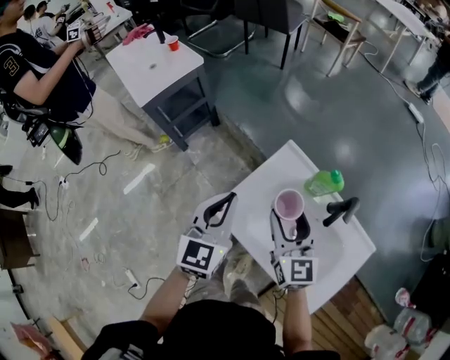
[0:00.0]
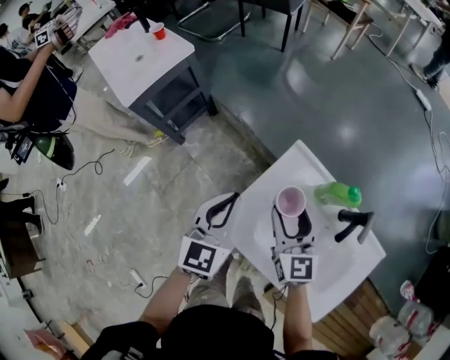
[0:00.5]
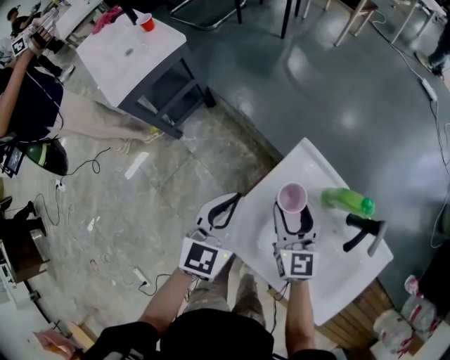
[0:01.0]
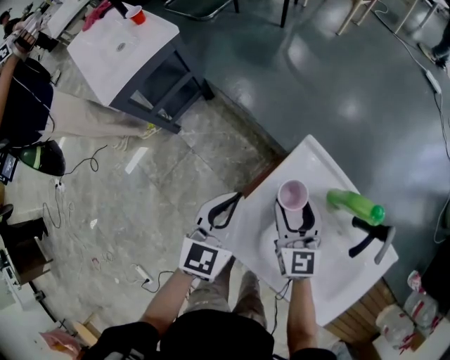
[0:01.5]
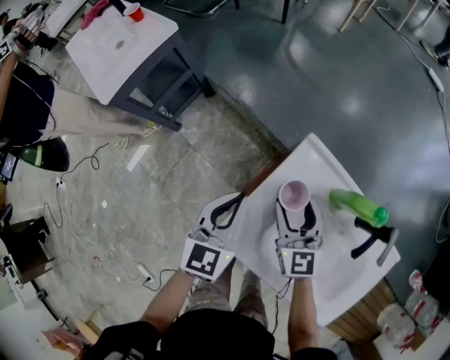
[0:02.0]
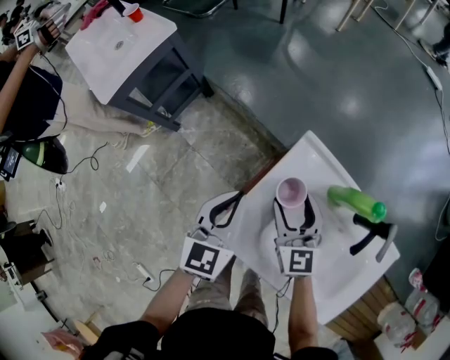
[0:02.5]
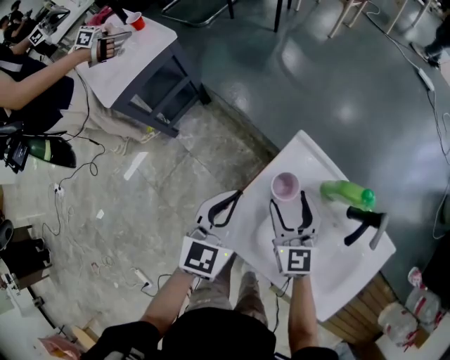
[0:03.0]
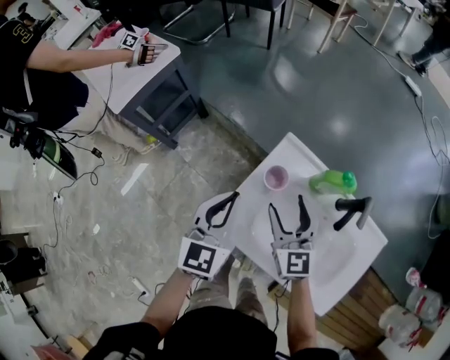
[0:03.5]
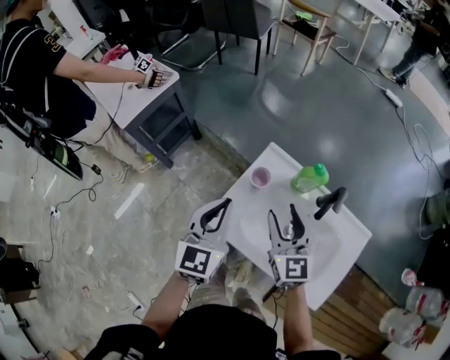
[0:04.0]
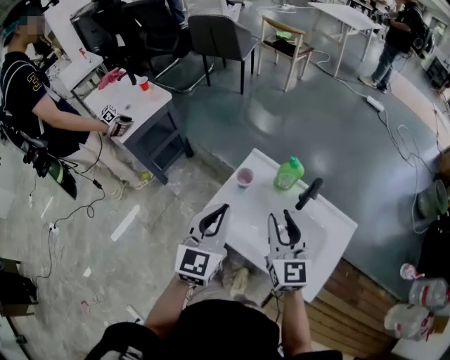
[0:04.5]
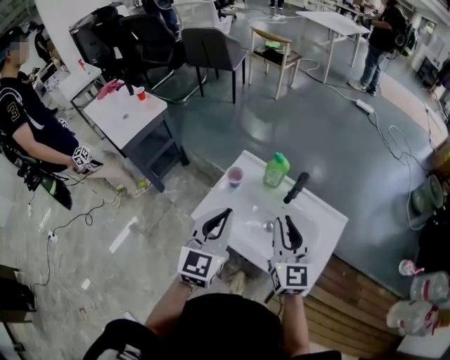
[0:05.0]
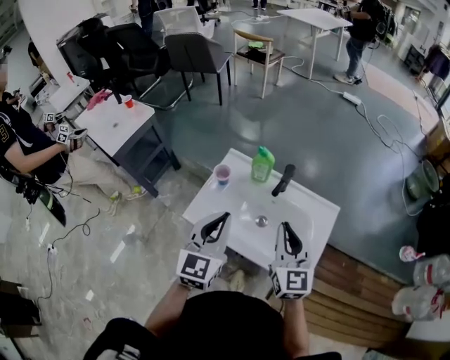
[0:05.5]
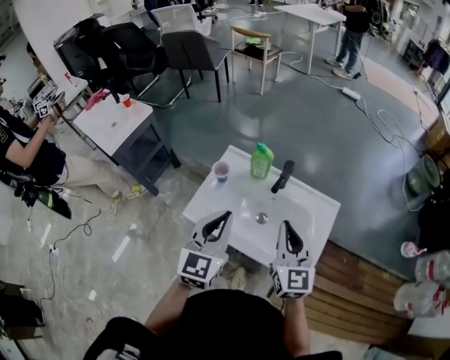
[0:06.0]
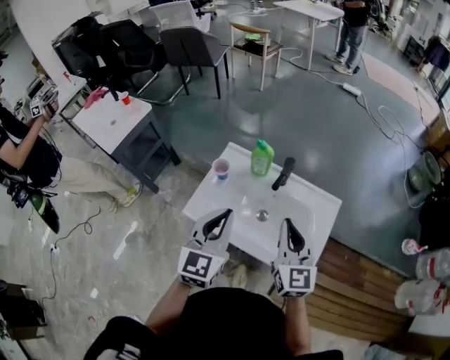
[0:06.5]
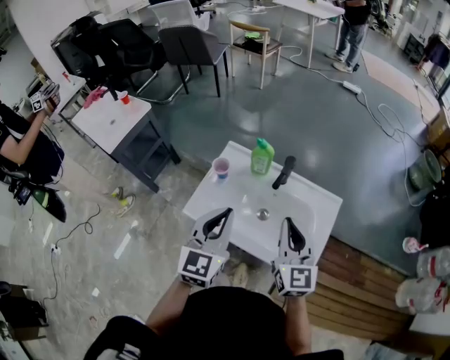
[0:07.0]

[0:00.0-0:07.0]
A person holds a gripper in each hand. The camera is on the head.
0:00.0 to 0:02.0: Both grippers move downward and forward, some 20 cm.
0:02.0 to 0:03.5: The left gripper is displaced upward by roughly 10 cm. Meanwhile the right gripper goes approximately 10 cm upward and backward.
0:03.5 to 0:05.0: The right gripper moves upward, backward and to the right, roughly 25 cm, and closes. Meanwhile the left gripper moves backward, upward and to the right, approximately 25 cm.
0:05.0 to 0:07.0: The grippers both shift to the right by approximately 5 cm.

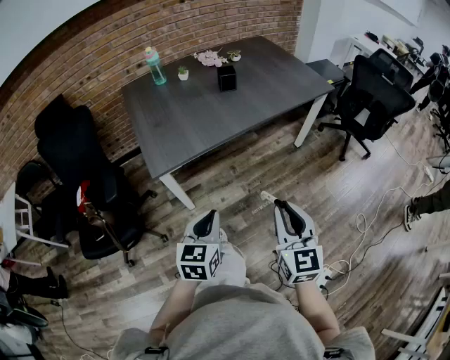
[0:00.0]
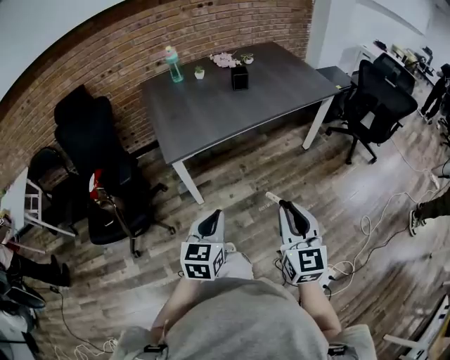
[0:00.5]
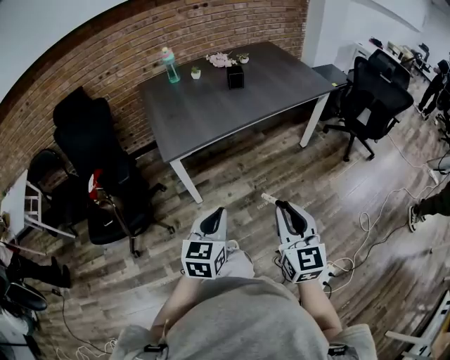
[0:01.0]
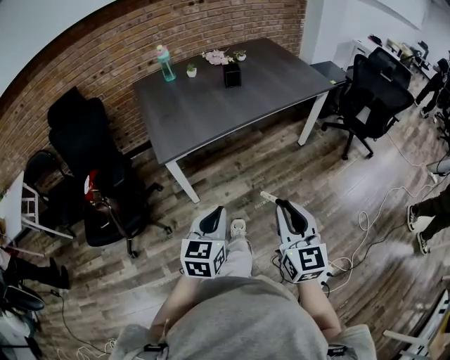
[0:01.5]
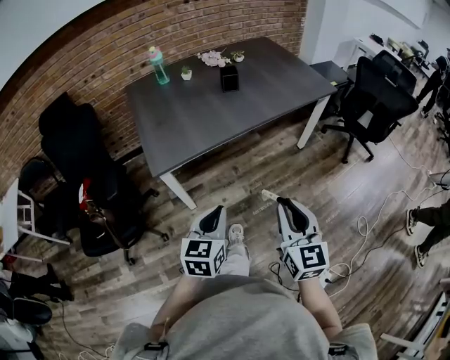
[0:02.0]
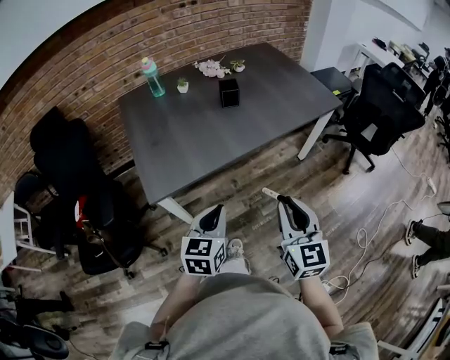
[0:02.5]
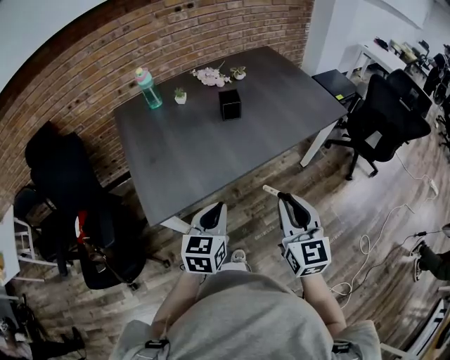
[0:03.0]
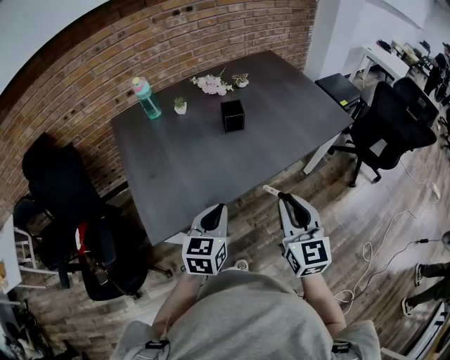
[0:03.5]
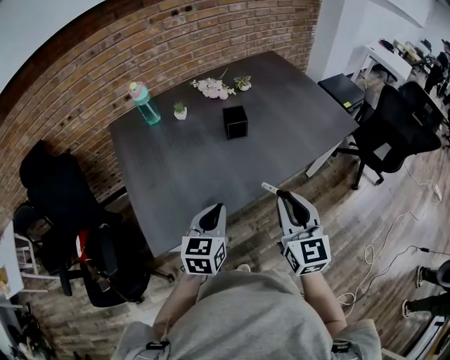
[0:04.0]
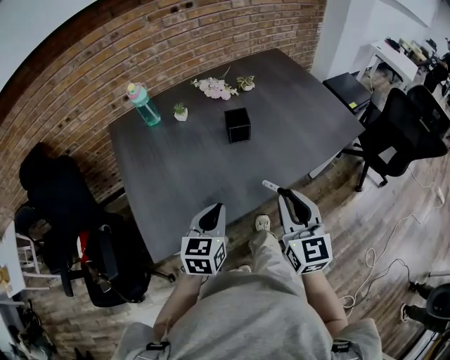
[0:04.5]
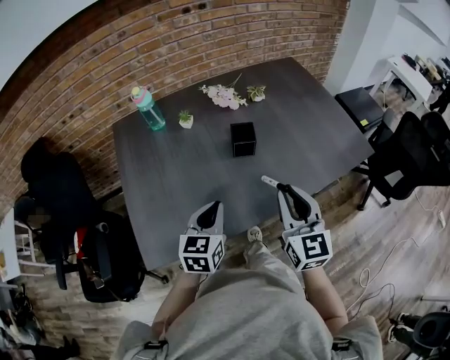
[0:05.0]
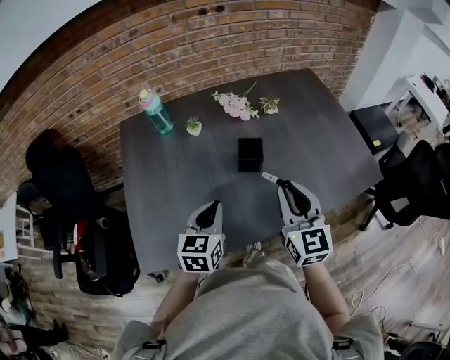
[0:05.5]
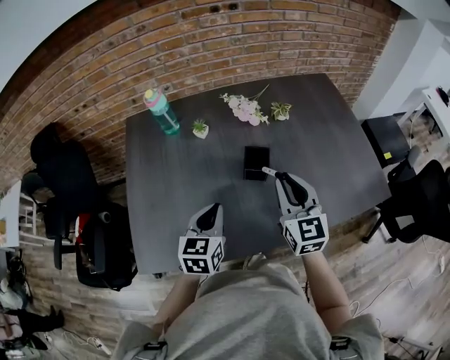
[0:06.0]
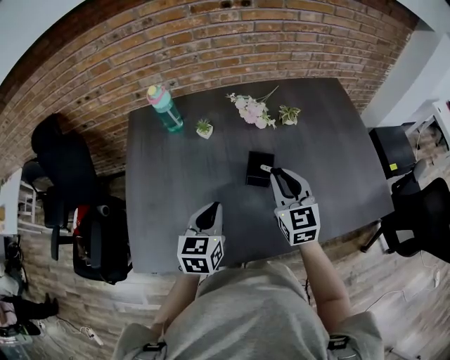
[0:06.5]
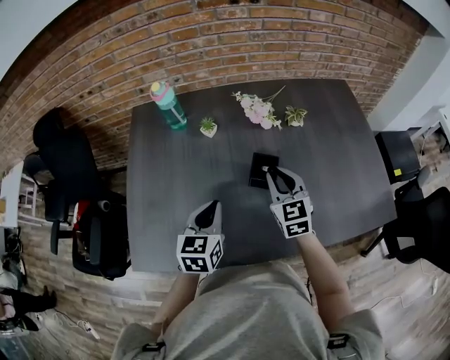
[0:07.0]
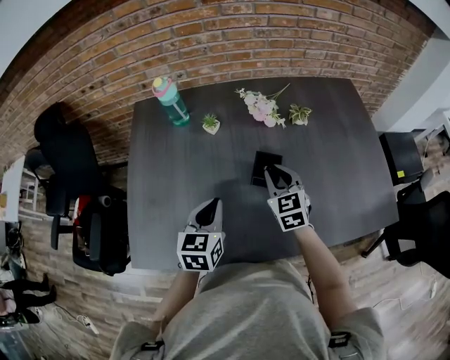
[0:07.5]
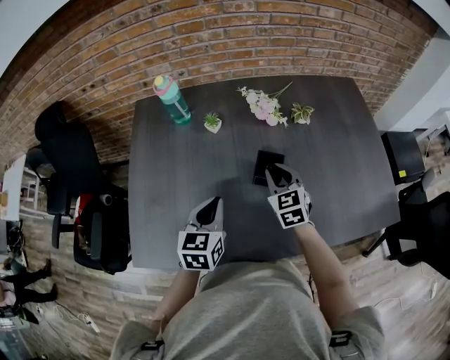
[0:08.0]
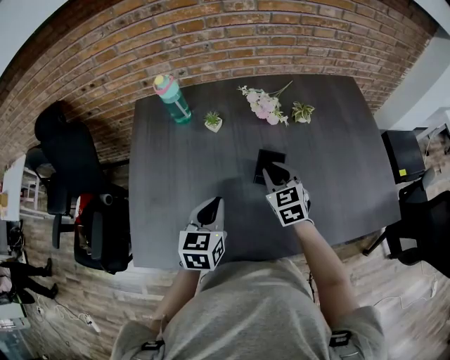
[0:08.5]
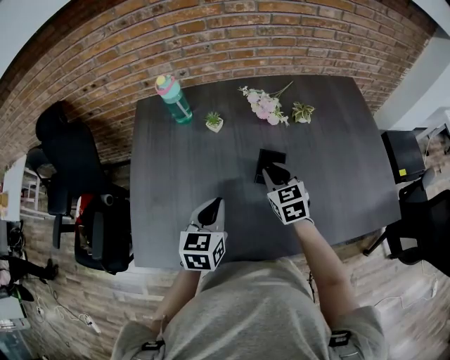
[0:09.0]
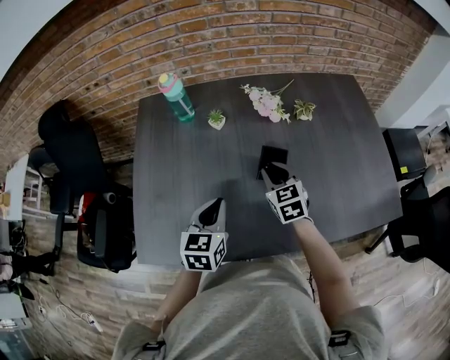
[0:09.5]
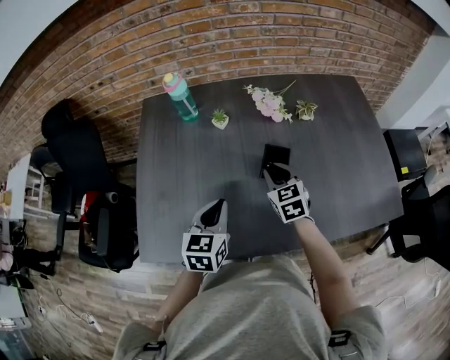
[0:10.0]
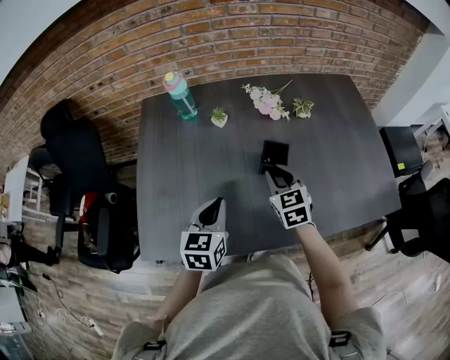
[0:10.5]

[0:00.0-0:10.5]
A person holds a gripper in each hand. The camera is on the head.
0:00.0 to 0:02.0: The left gripper travels backward and back again, approximately 10 cm each way. The right gripper travels backward and back again, some 10 cm each way.
0:02.0 to 0:04.0: Both grippers move forward, about 35 cm.
0:04.0 to 0:06.5: The left gripper moves forward, about 20 cm, and turns by approximately 20 degrees; the right gripper travels forward by some 35 cm, and swivels approximately 30 degrees.
0:06.5 to 0:08.5: The right gripper moves downward and forward, approximately 10 cm.
0:08.5 to 0:10.5: The left gripper ends up about 5 cm from where it was; the right gripper shifts some 5 cm backward.

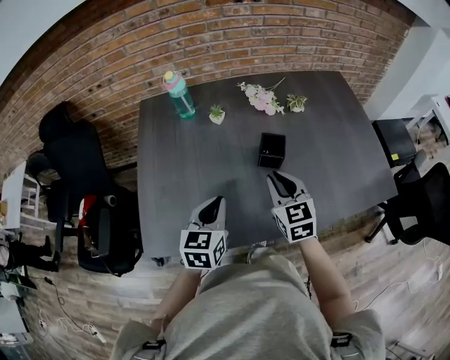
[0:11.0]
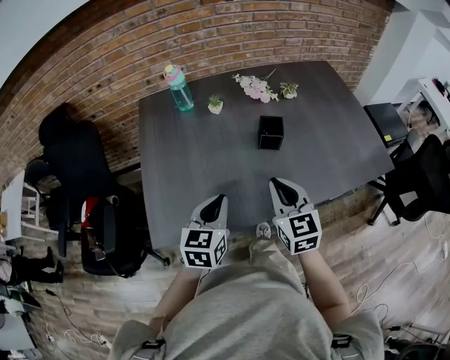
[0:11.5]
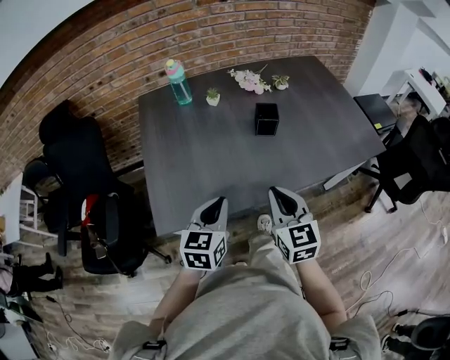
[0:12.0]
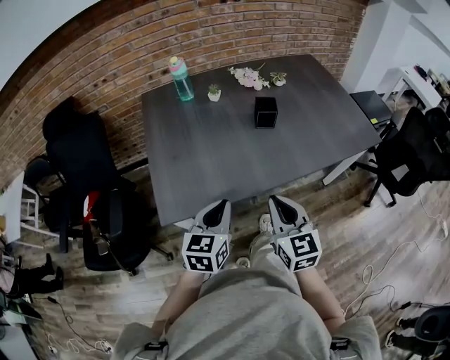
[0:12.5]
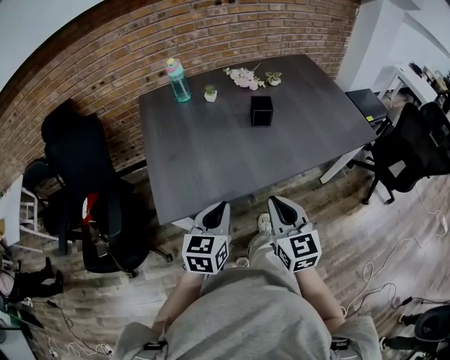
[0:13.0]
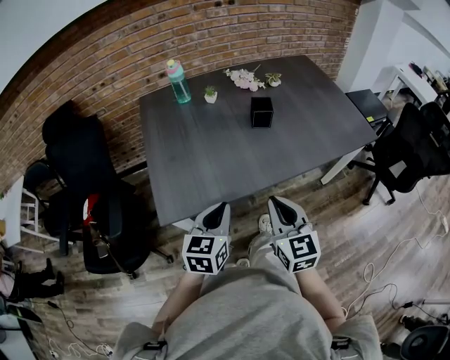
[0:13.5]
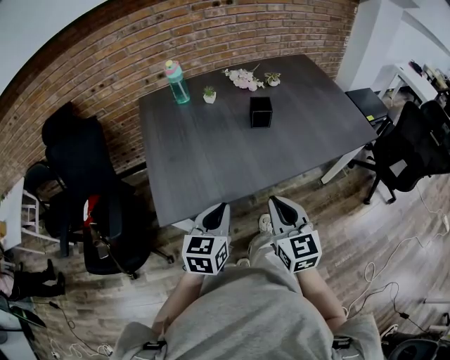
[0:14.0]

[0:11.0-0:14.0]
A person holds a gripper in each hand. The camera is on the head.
0:11.0 to 0:12.5: The two grippers go roughly 25 cm backward.
0:12.5 to 0:14.0: The grippers stay close to where they were, moving slightly.

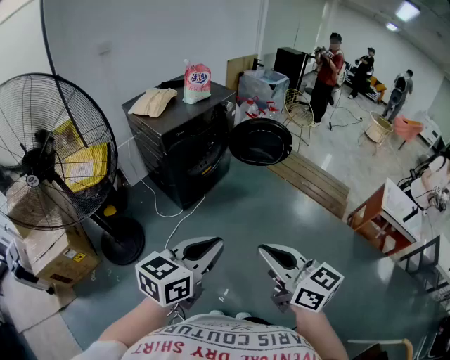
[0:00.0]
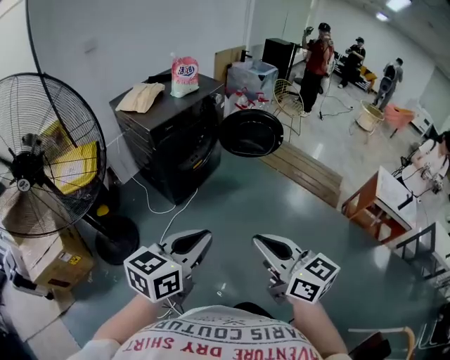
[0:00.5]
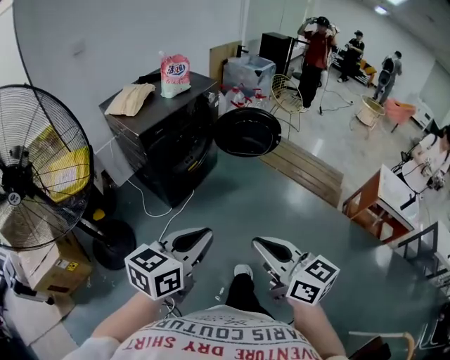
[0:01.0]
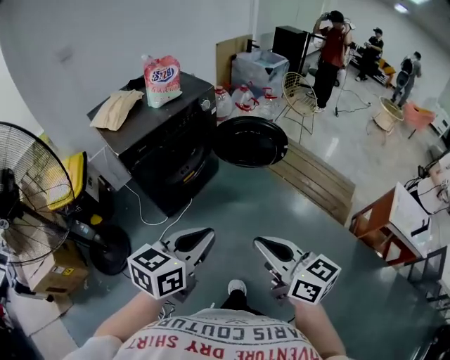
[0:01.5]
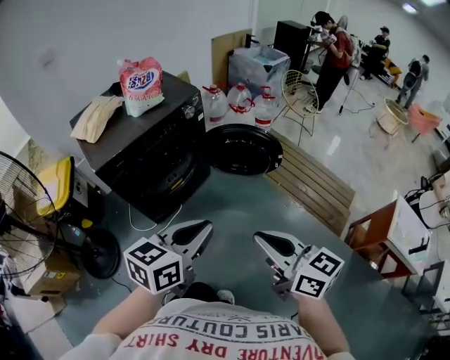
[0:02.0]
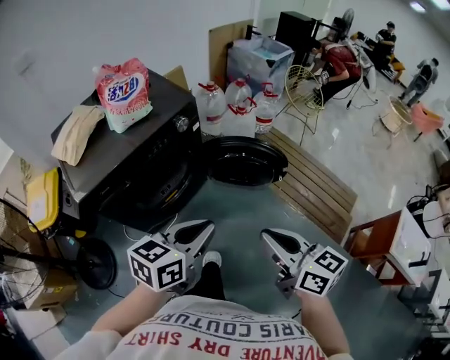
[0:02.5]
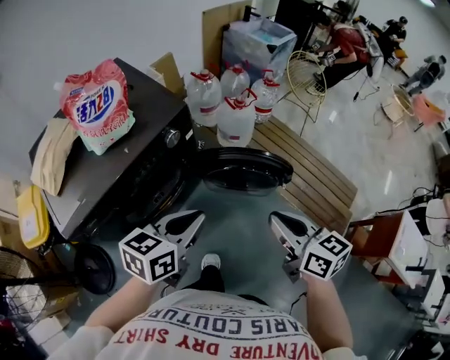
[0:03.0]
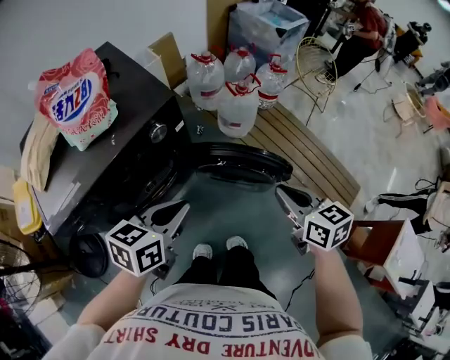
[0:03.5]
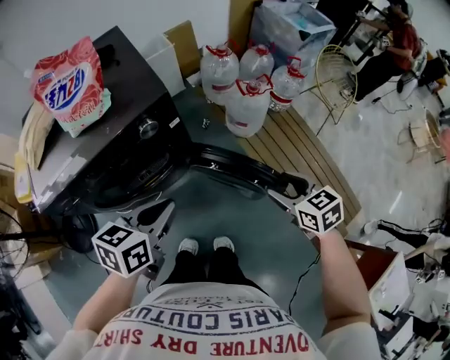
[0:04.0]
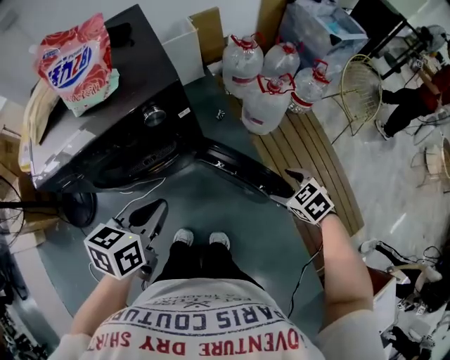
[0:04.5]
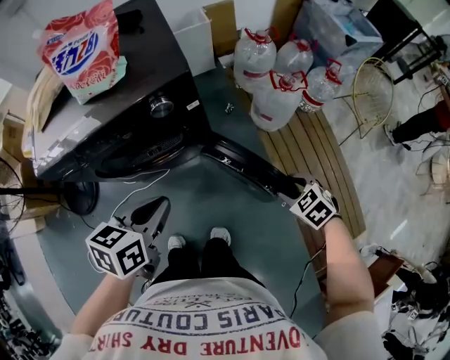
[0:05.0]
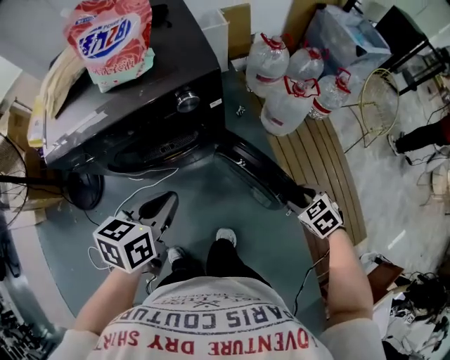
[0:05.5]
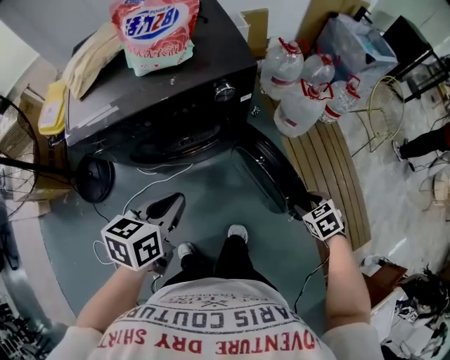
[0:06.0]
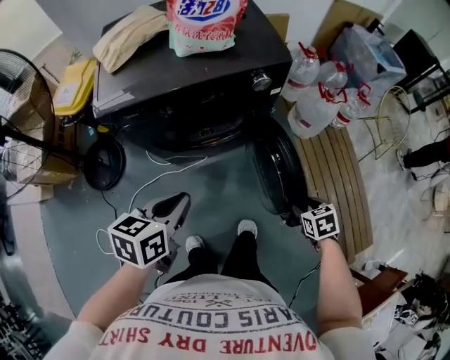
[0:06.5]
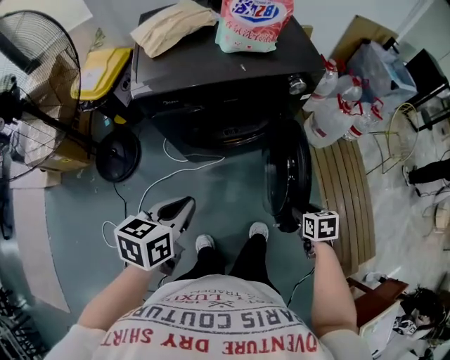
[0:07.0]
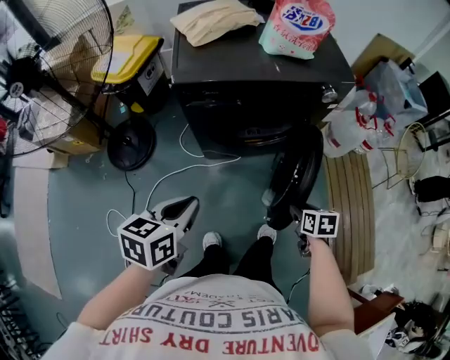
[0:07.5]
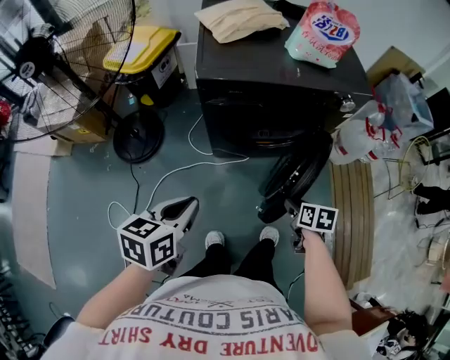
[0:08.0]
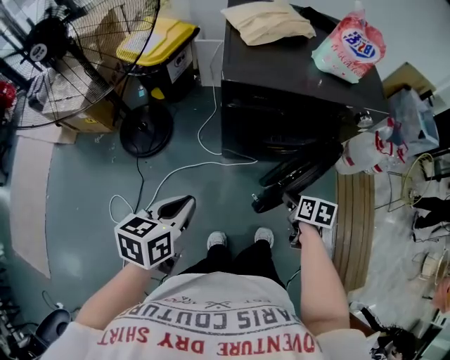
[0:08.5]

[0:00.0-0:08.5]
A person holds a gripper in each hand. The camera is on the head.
0:00.0 to 0:02.0: The two grippers go approximately 40 cm forward and to the right.
0:02.0 to 0:04.0: The right gripper moves forward and downward, about 50 cm, tilts its fingers some 30 degrees downward, and opens, while the left gripper goes about 35 cm forward, and changes its angle by approximately 30 degrees.
0:04.0 to 0:06.5: The right gripper heads downward, to the left and backward, covering about 20 cm, and turns by approximately 30 degrees, while the left gripper travels to the left and backward by some 25 cm, and swivels some 20 degrees.
0:06.5 to 0:08.5: Both grippers move to the left, about 30 cm. The right gripper changes its angle by approximately 20 degrees.
